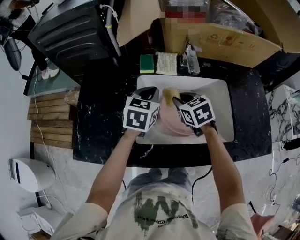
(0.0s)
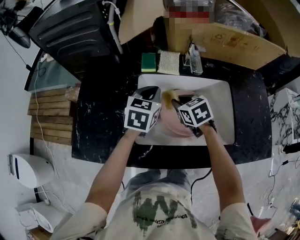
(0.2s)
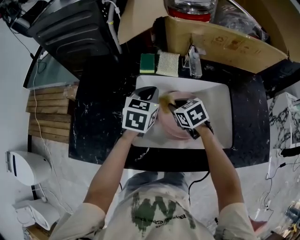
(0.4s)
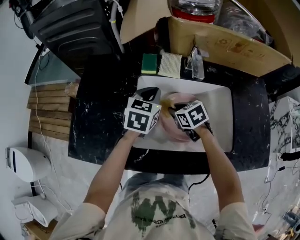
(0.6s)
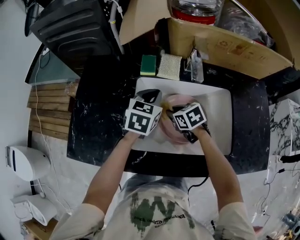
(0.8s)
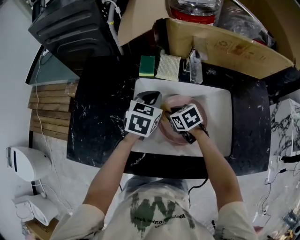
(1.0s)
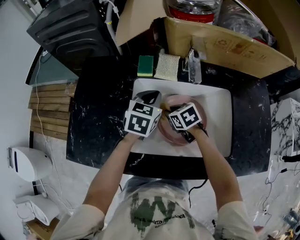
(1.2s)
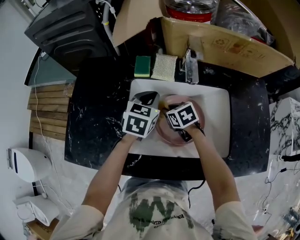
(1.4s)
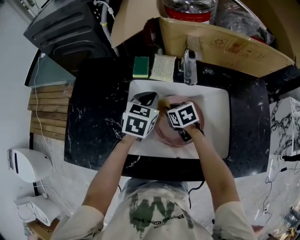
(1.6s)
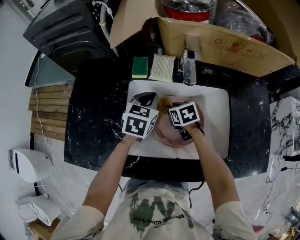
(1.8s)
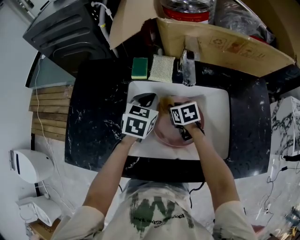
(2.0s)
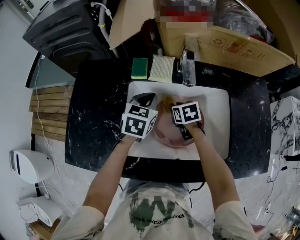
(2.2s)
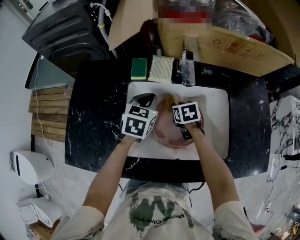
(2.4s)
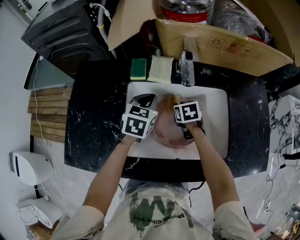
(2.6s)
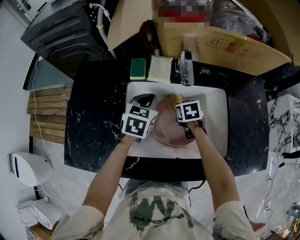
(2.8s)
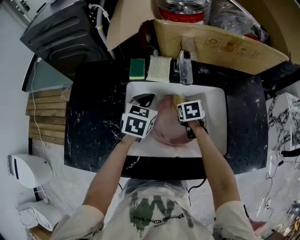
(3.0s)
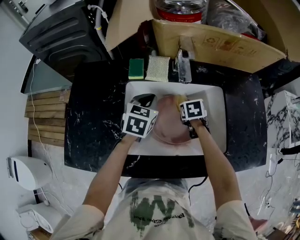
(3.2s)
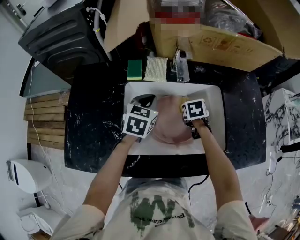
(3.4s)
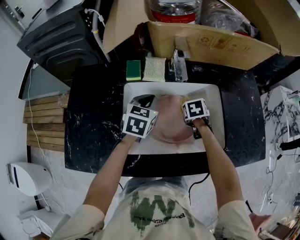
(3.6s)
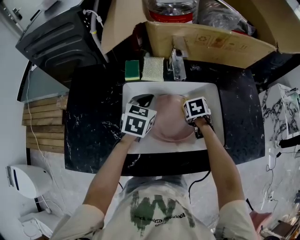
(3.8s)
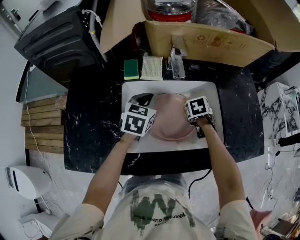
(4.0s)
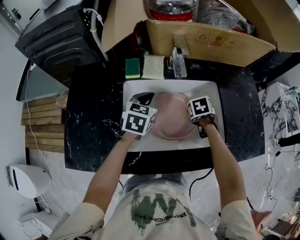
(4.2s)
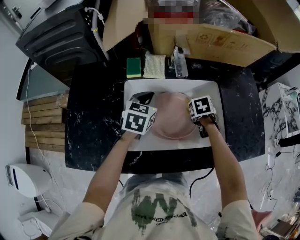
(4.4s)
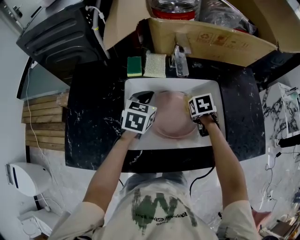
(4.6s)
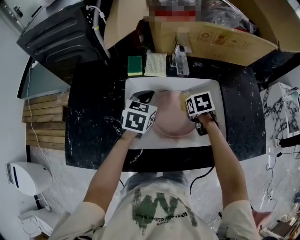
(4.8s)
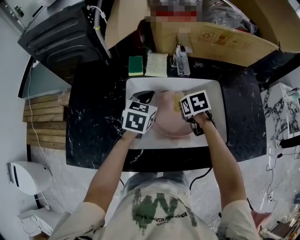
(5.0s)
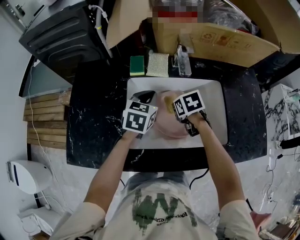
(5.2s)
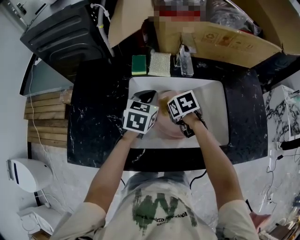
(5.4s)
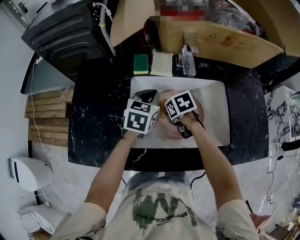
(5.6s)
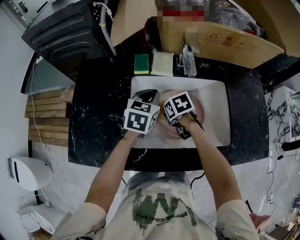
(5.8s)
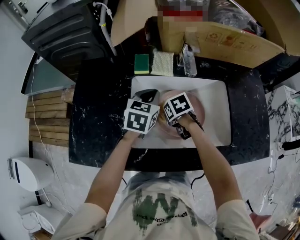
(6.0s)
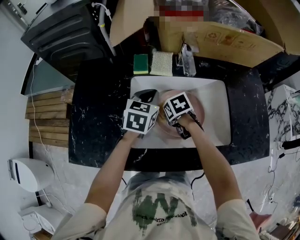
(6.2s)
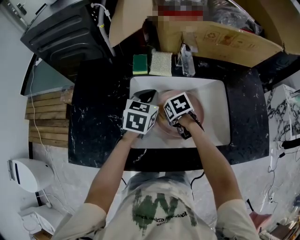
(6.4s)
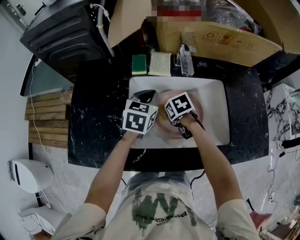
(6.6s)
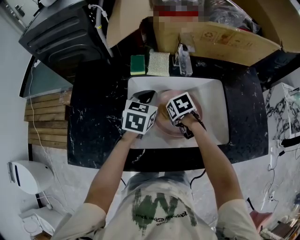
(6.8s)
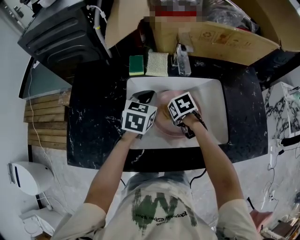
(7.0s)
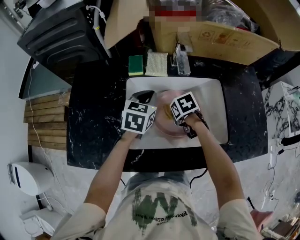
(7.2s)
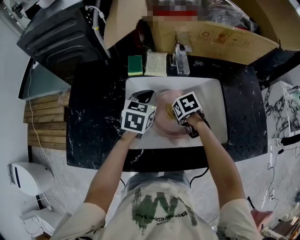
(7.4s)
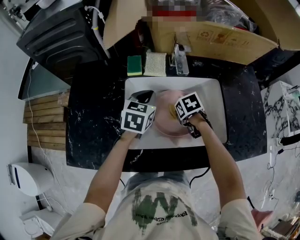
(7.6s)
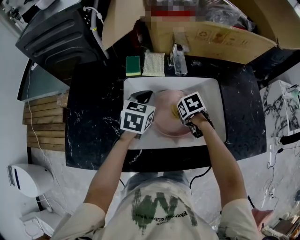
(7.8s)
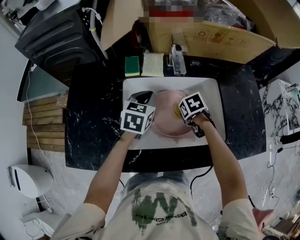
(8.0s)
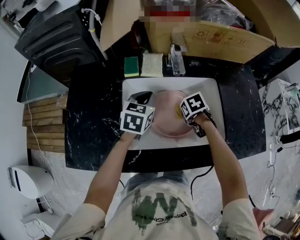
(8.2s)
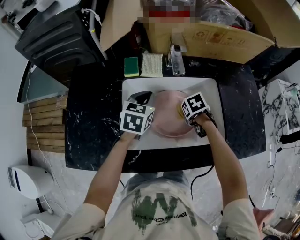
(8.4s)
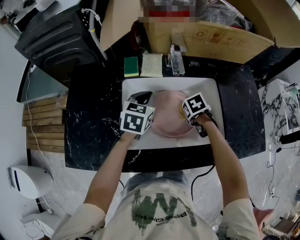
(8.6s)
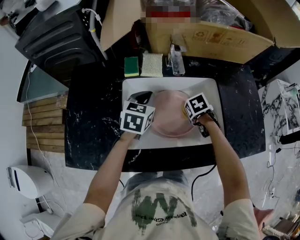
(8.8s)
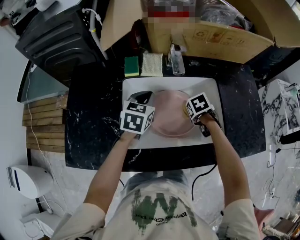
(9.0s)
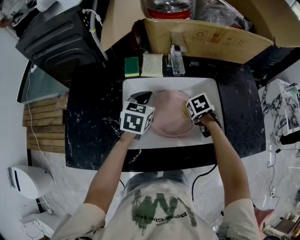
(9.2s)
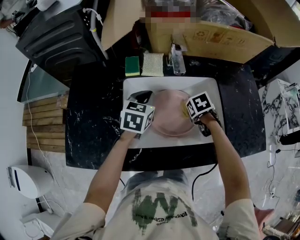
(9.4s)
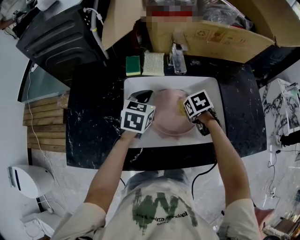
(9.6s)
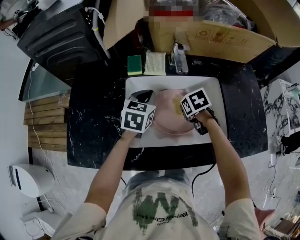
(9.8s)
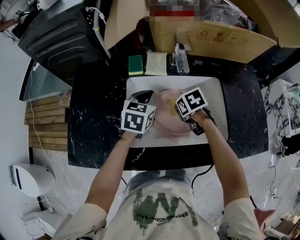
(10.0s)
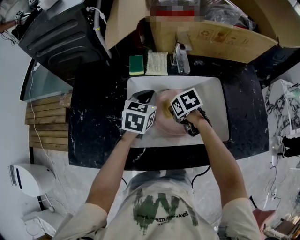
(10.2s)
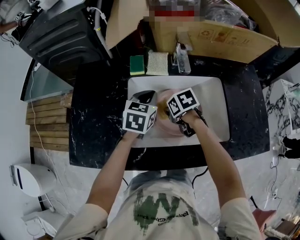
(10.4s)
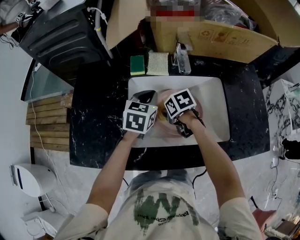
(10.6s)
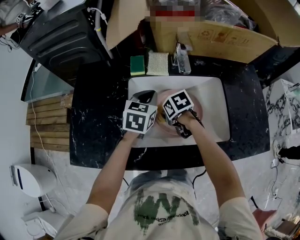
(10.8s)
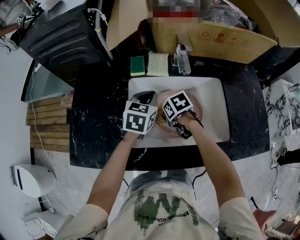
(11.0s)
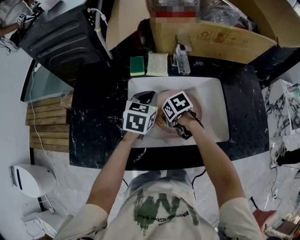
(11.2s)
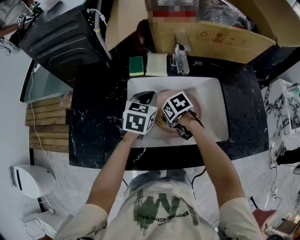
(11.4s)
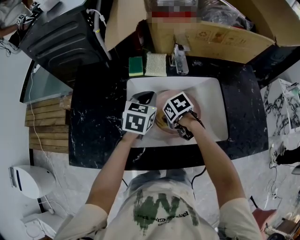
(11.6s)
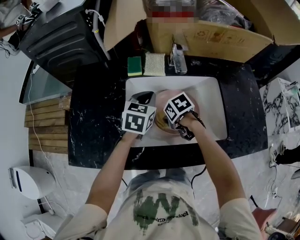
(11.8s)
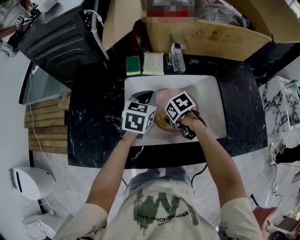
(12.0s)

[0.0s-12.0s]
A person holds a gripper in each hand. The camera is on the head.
0.0s to 1.6s: The right gripper moves downward, about 10 cm. The left gripper moves roughly 5 cm.
1.6s to 3.0s: The right gripper travels to the right by some 10 cm, and turns by roughly 20 degrees.
3.0s to 4.4s: The right gripper shifts some 10 cm to the right.
4.4s to 6.0s: The right gripper ends up roughly 20 cm from where it was, and rotates about 20 degrees.
6.0s to 7.6s: The right gripper moves to the right, about 10 cm.
7.6s to 9.0s: The right gripper shifts by some 10 cm.
9.0s to 10.4s: The right gripper changes place by approximately 15 cm, and rotates roughly 20 degrees.
10.4s to 12.0s: The right gripper shifts by some 5 cm.

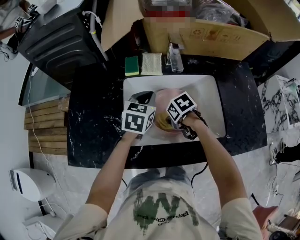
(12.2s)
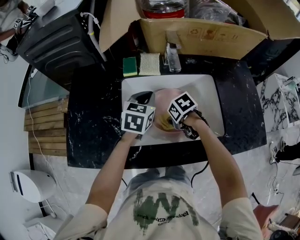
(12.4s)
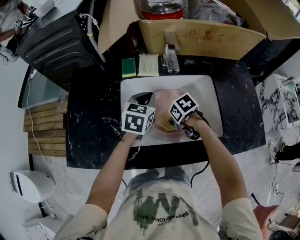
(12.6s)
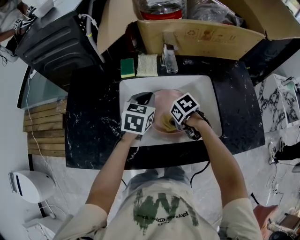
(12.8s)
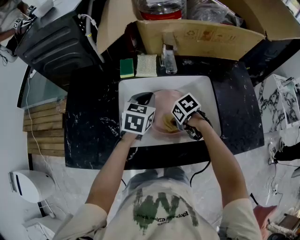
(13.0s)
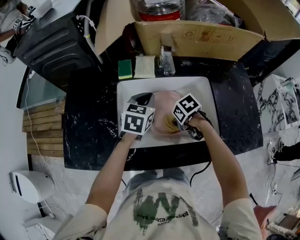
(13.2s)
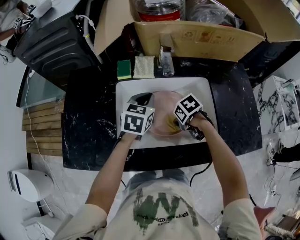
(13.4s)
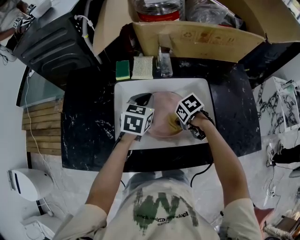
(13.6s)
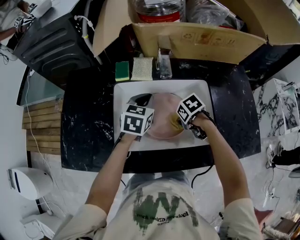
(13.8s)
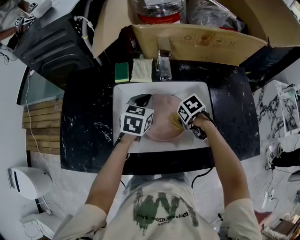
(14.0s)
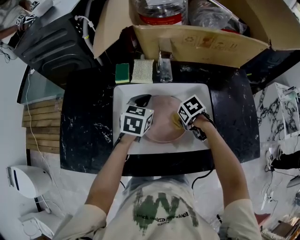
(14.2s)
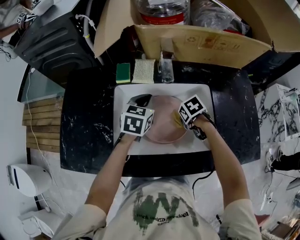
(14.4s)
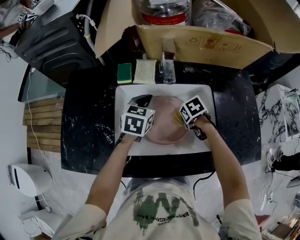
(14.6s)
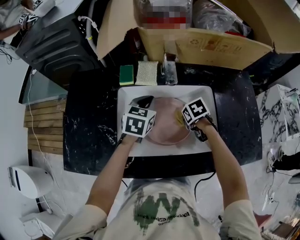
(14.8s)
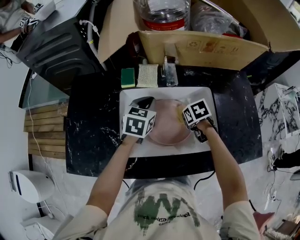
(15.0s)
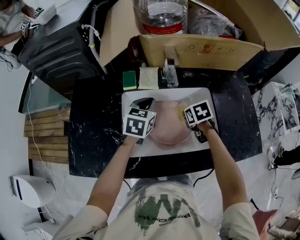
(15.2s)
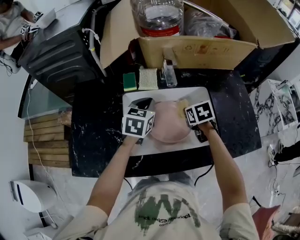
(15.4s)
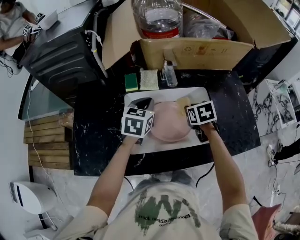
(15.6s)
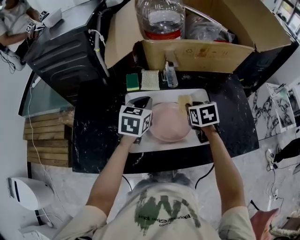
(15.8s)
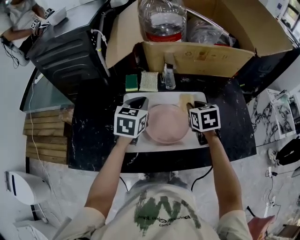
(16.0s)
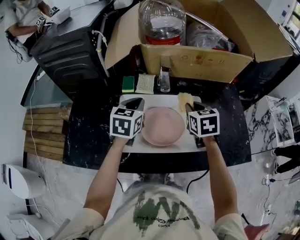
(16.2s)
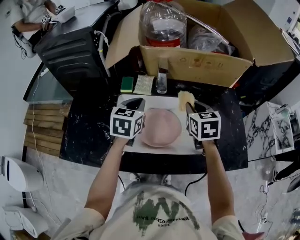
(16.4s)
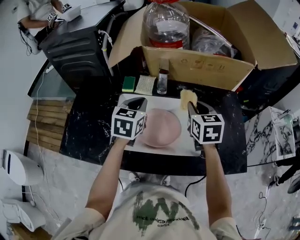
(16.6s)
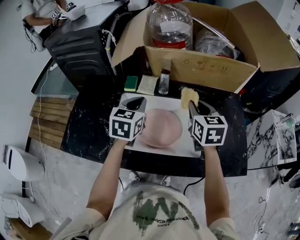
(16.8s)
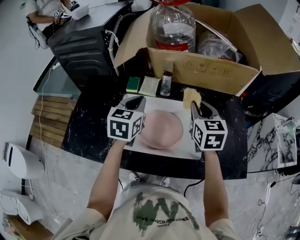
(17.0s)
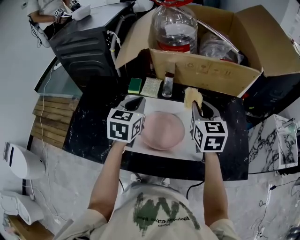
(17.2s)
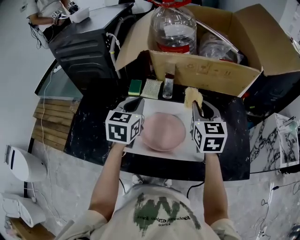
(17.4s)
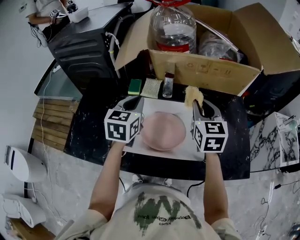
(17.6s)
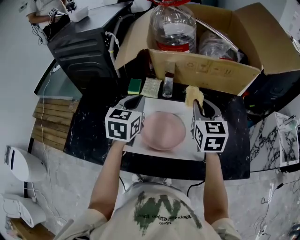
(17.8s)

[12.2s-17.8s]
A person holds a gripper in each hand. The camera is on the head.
12.2s to 13.6s: The right gripper changes place by about 10 cm.
13.6s to 15.0s: The right gripper ends up approximately 10 cm from where it was, and swivels some 20 degrees.
15.0s to 16.4s: The right gripper shifts about 20 cm upward, and tips its fingers upward by approximately 40 degrees; the left gripper goes some 10 cm upward.
16.4s to 17.8s: The right gripper goes roughly 5 cm upward. Meanwhile the left gripper changes place by roughly 5 cm.

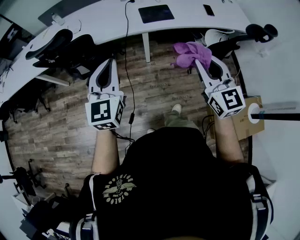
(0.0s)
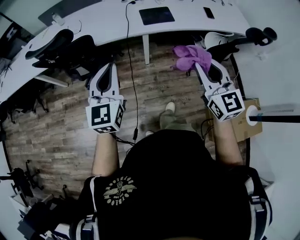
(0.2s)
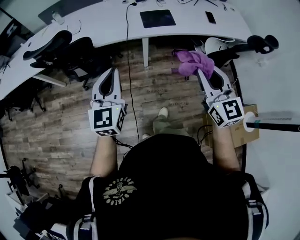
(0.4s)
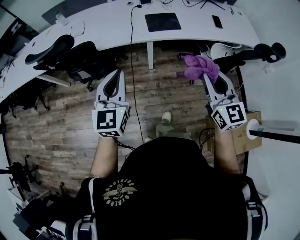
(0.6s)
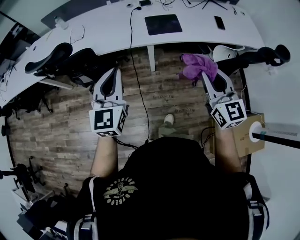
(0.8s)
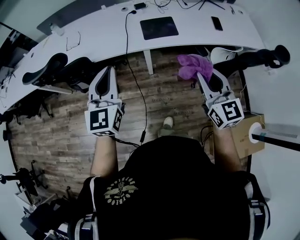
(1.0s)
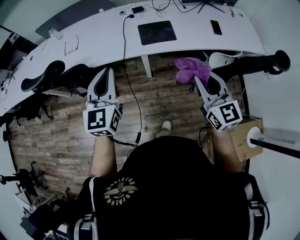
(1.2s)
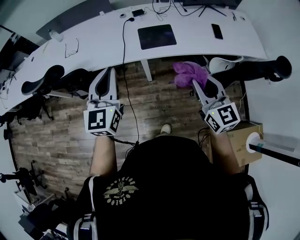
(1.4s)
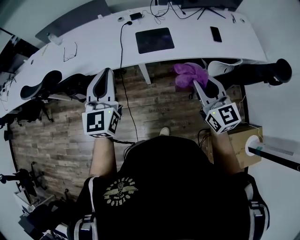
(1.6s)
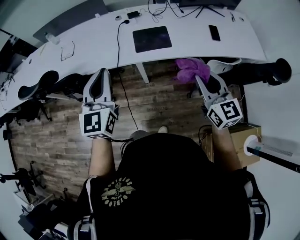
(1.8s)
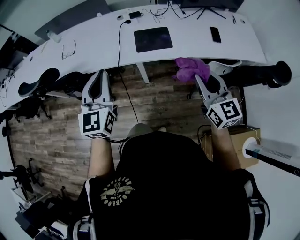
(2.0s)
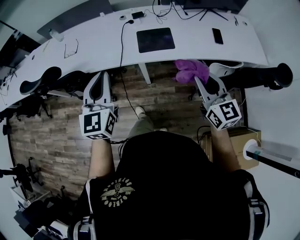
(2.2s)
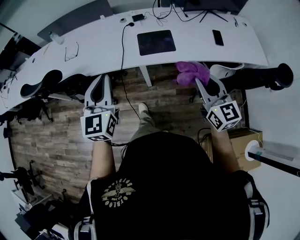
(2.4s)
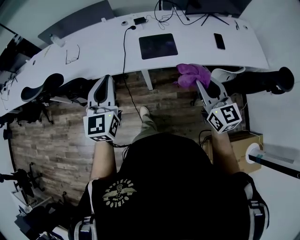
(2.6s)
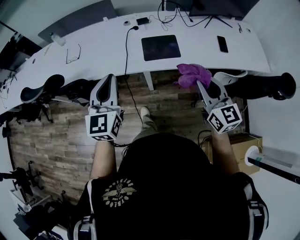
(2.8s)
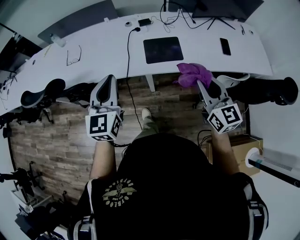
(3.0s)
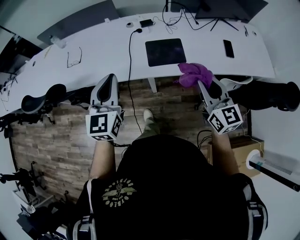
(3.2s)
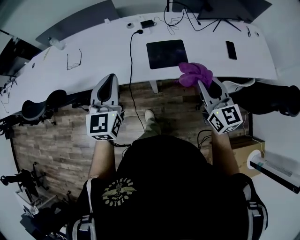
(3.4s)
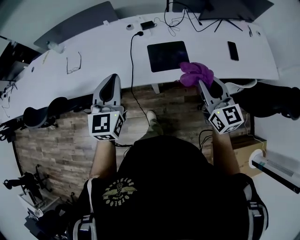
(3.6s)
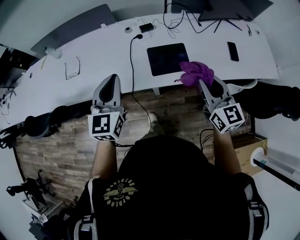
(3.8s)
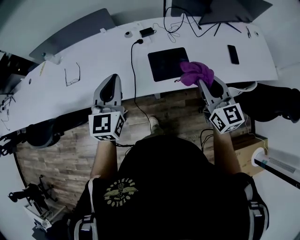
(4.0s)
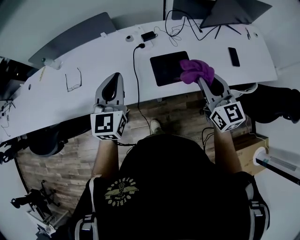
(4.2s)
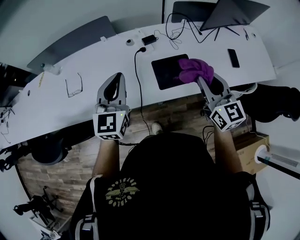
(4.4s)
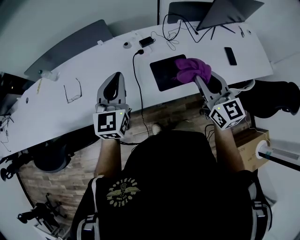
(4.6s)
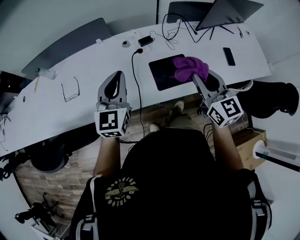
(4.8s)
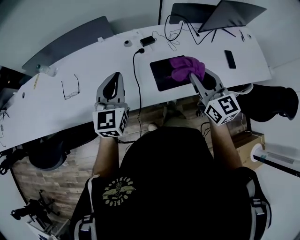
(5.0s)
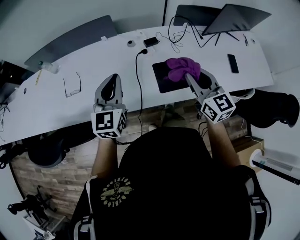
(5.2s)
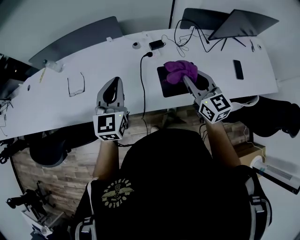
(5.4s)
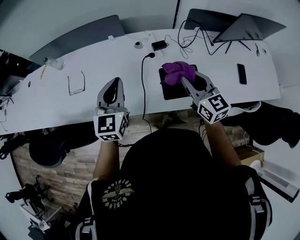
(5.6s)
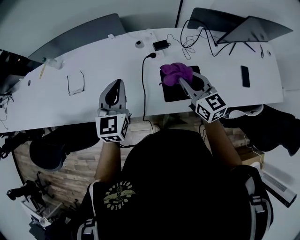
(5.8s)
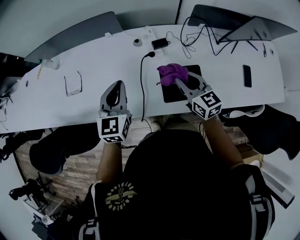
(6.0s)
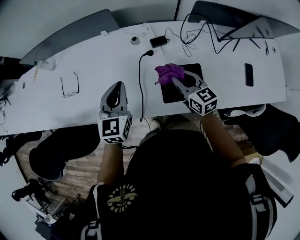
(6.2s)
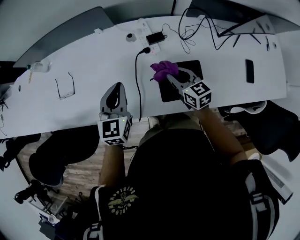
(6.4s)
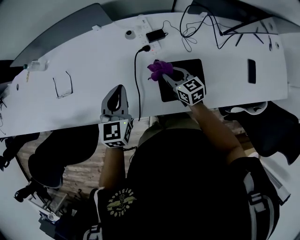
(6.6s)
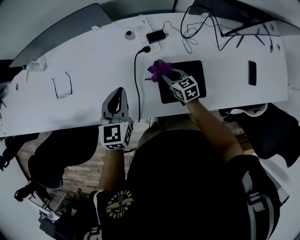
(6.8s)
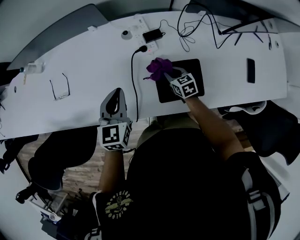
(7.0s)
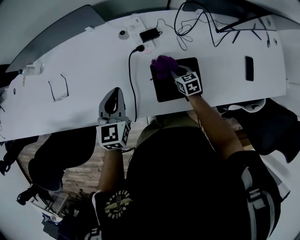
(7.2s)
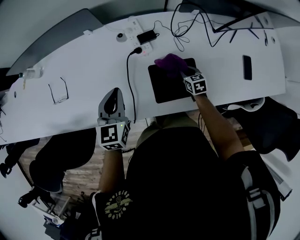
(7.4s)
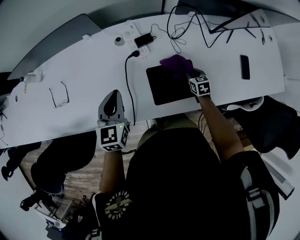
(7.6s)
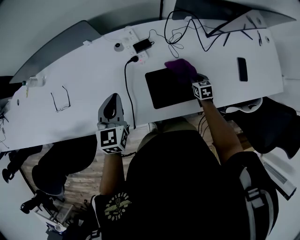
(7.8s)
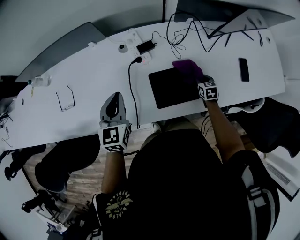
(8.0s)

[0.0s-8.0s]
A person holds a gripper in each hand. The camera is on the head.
0.0s to 1.6s: Both grippers travel together forward and to the right, approximately 25 cm.
1.6s to 3.2s: The two grippers go about 10 cm forward.
3.2s to 4.8s: The right gripper moves forward and to the left, some 20 cm. Meanwhile the left gripper moves forward, approximately 20 cm.
4.8s to 6.4s: The left gripper shifts about 15 cm downward and forward; the right gripper is displaced downward and forward by roughly 30 cm, and changes its angle by approximately 30 degrees.
6.4s to 8.0s: The right gripper is displaced to the right and downward by some 30 cm, and swivels some 40 degrees.
